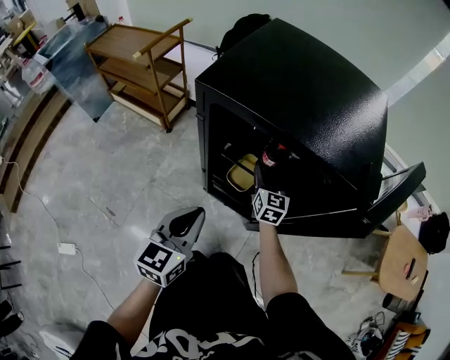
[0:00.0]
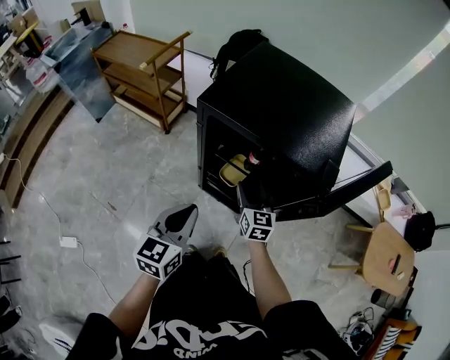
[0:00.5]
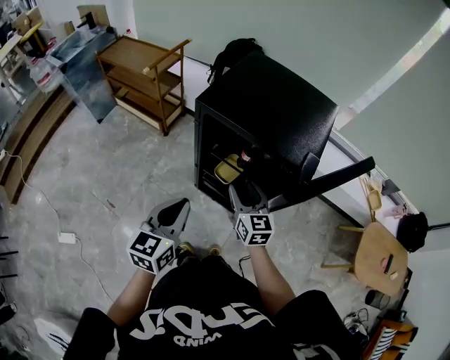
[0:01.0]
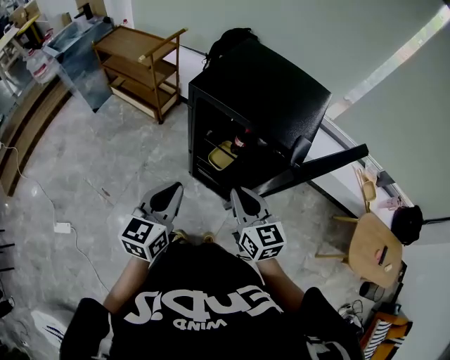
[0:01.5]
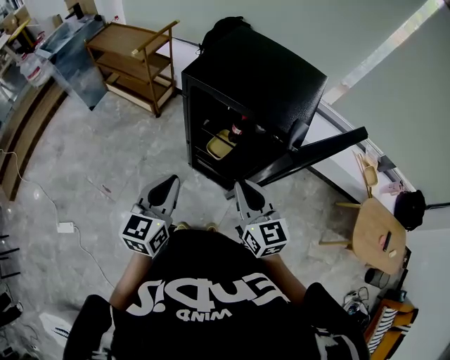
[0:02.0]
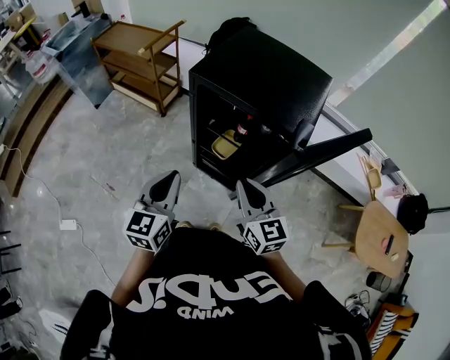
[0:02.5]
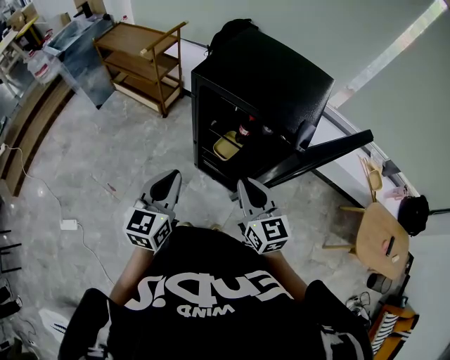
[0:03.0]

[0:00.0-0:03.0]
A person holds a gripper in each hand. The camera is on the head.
0:00.0 to 0:01.5: The right gripper is displaced upward and backward by about 35 cm, turns by approximately 30 degrees, and closes its fingers, while the left gripper shifts some 20 cm upward and backward.
0:01.5 to 0:03.0: The grippers move only a little.

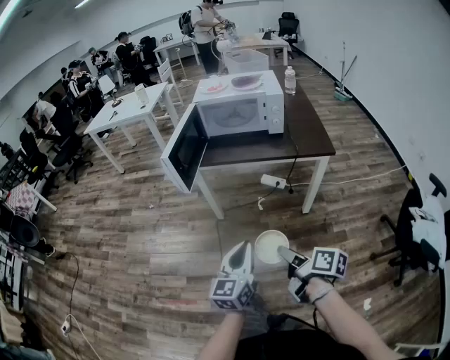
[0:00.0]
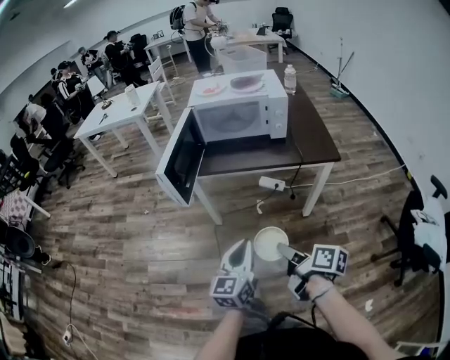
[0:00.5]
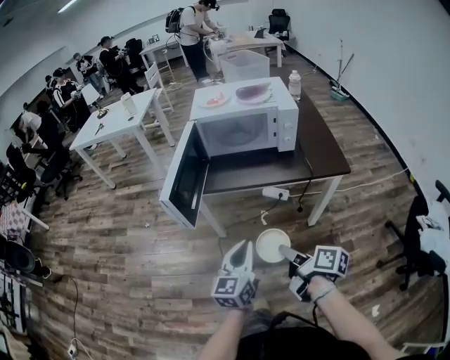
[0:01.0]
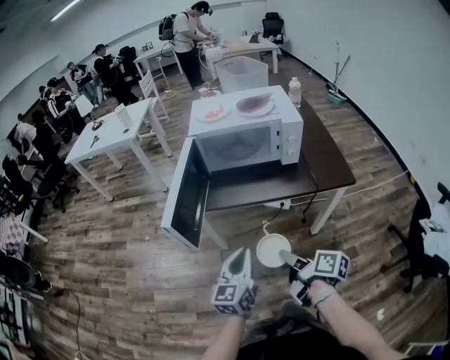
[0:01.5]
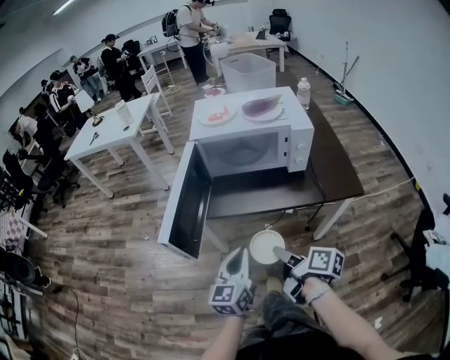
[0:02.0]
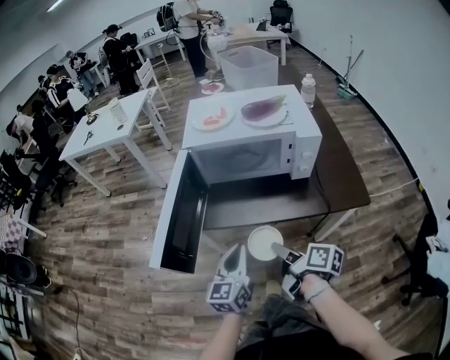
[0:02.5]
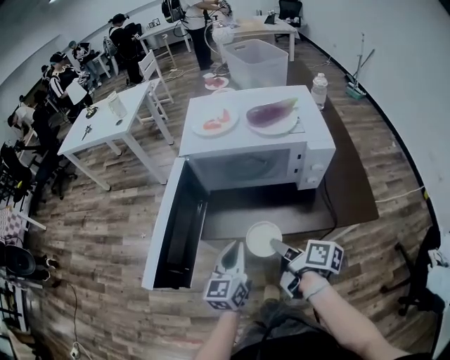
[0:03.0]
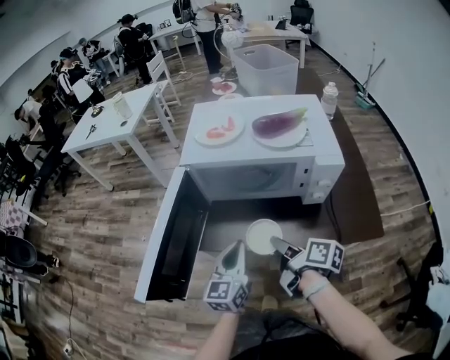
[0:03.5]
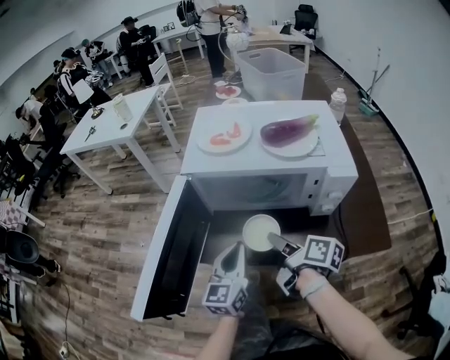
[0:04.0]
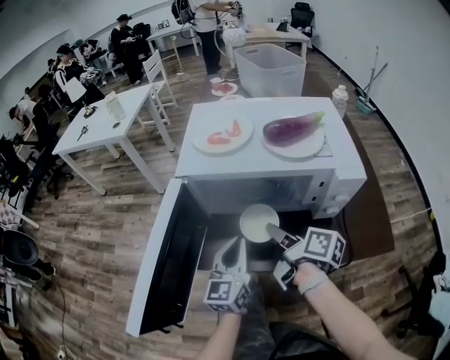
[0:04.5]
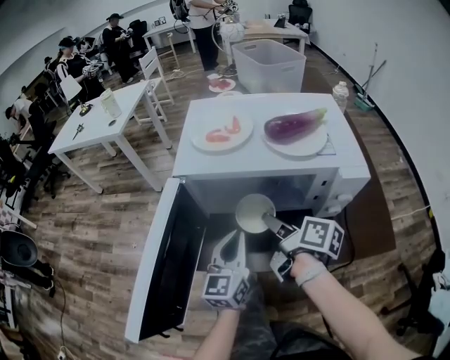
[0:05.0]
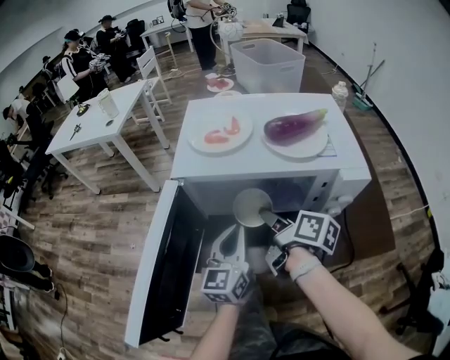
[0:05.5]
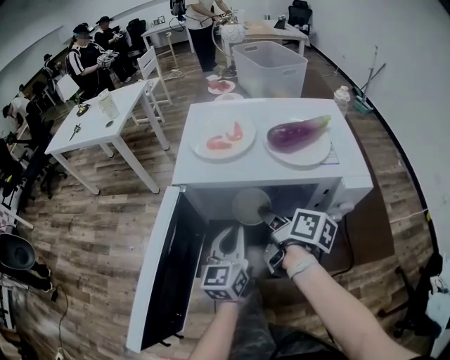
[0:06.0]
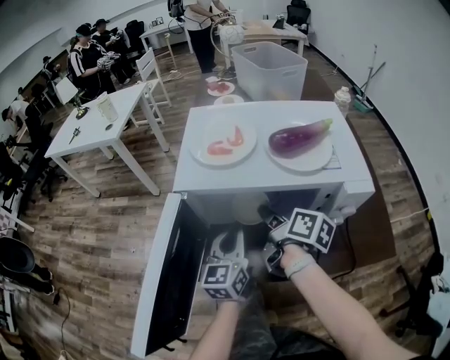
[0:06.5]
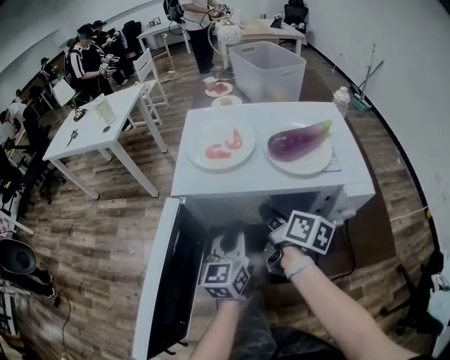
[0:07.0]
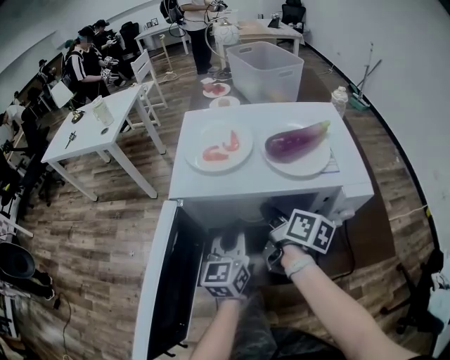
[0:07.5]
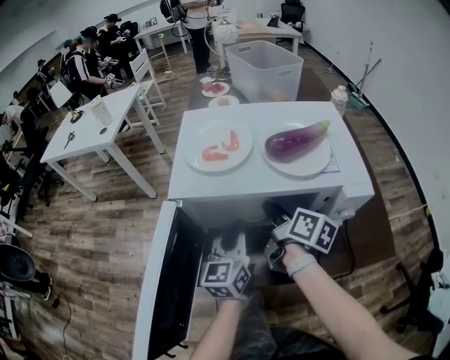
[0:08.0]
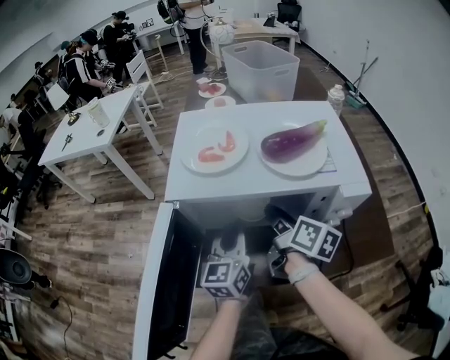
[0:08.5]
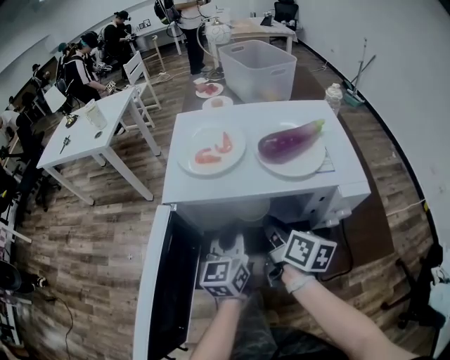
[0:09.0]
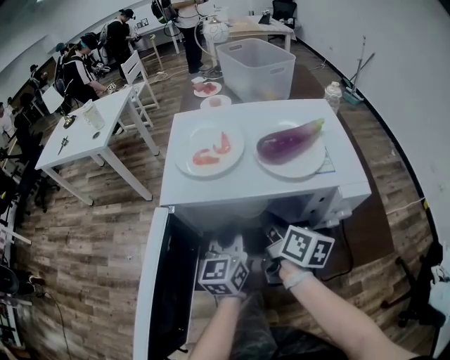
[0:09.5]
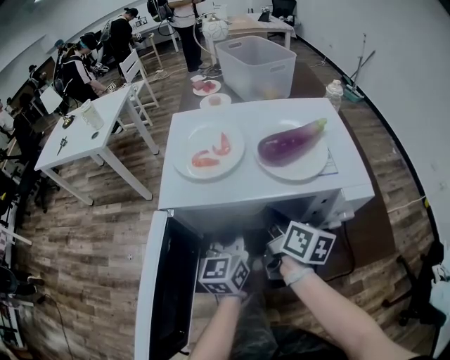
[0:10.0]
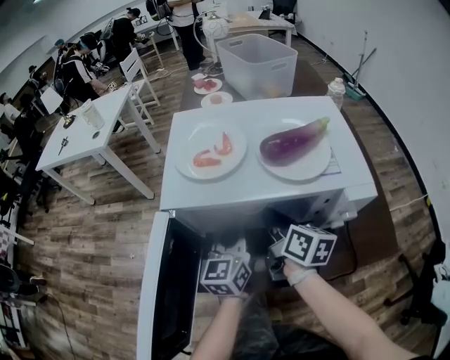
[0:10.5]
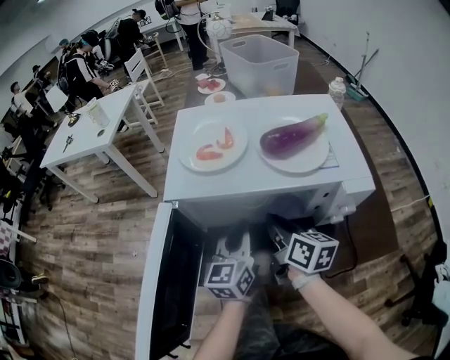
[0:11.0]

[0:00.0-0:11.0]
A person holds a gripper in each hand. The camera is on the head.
0:00.0 to 0:02.0: Both grippers move forward, some 30 cm.
0:02.0 to 0:03.5: The grippers both shift forward by about 20 cm.
0:03.5 to 0:05.5: The grippers both shift forward by approximately 15 cm.
0:05.5 to 0:07.5: Both grippers move forward, roughly 5 cm.
0:07.5 to 0:09.0: The right gripper closes.
0:09.0 to 0:11.0: The grippers make only small movements.

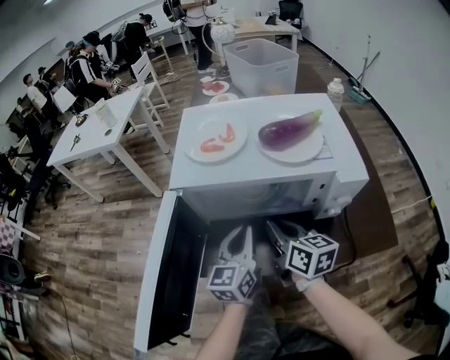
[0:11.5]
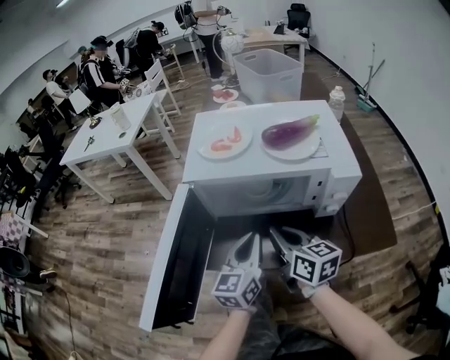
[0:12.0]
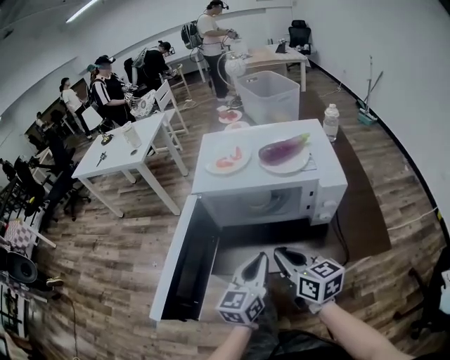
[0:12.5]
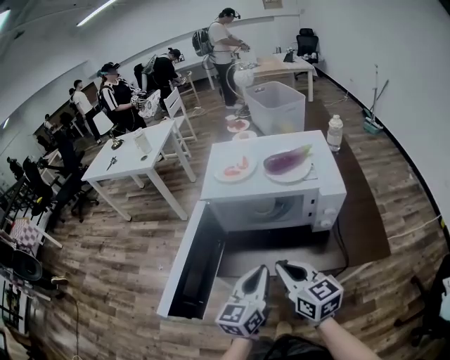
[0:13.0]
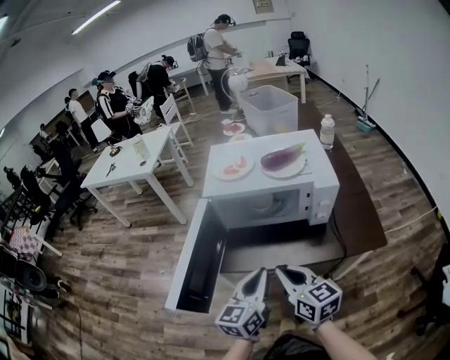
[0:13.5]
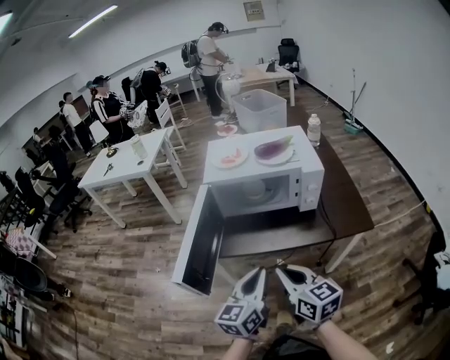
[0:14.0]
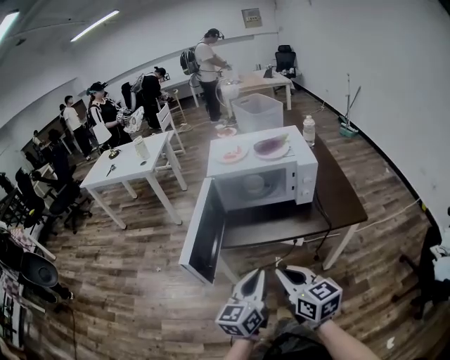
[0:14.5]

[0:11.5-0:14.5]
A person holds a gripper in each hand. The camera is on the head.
0:11.5 to 0:13.0: The grippers both shift backward and upward by approximately 15 cm.
0:13.0 to 0:14.5: The grippers both shift backward by some 20 cm.

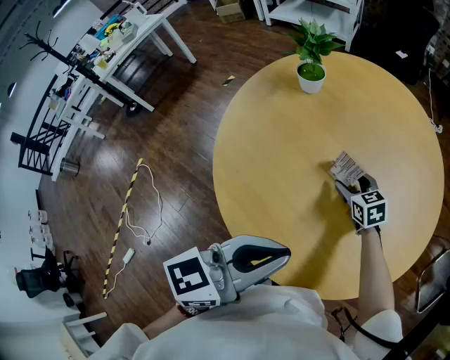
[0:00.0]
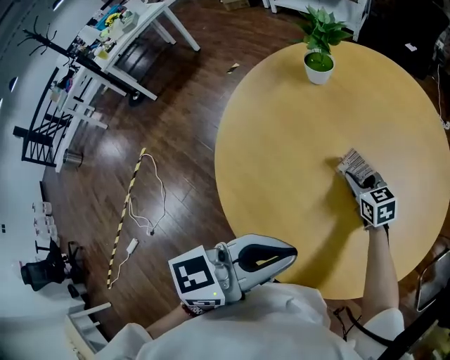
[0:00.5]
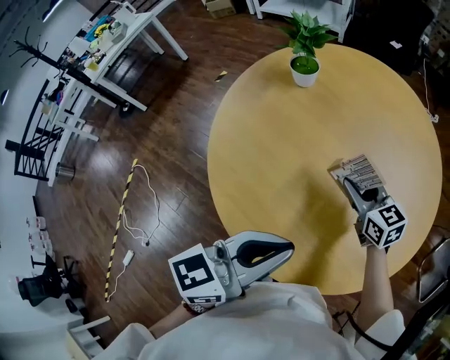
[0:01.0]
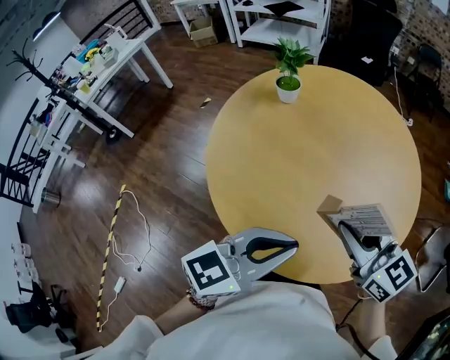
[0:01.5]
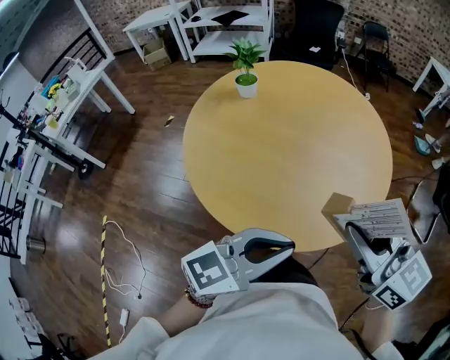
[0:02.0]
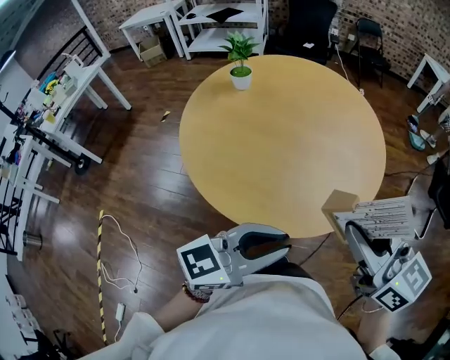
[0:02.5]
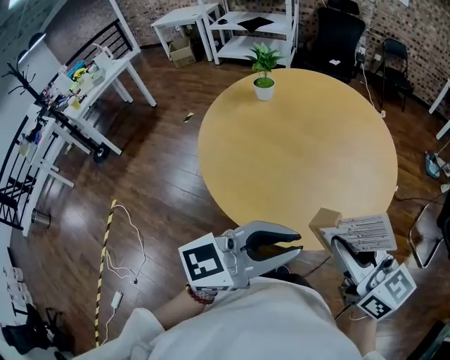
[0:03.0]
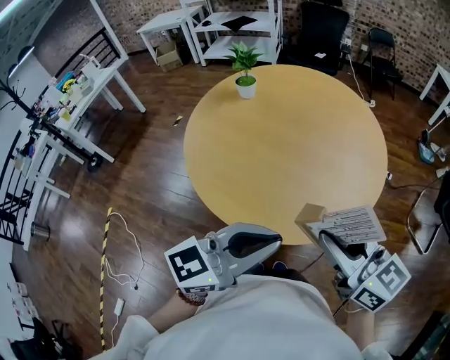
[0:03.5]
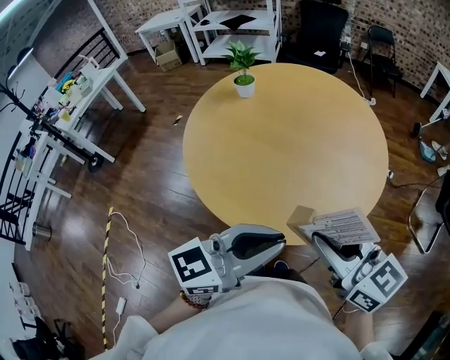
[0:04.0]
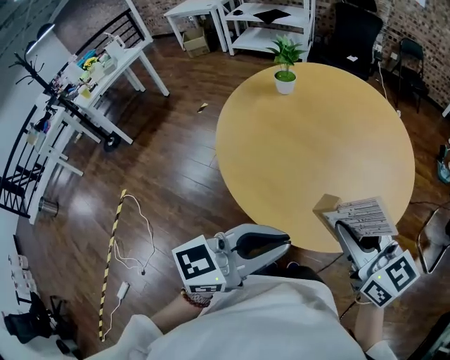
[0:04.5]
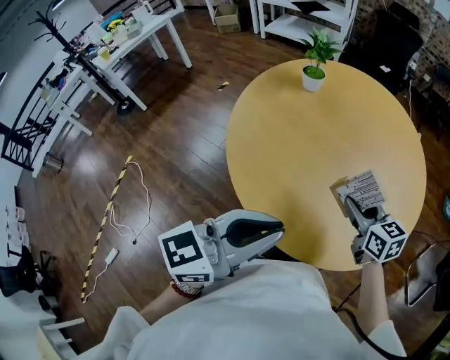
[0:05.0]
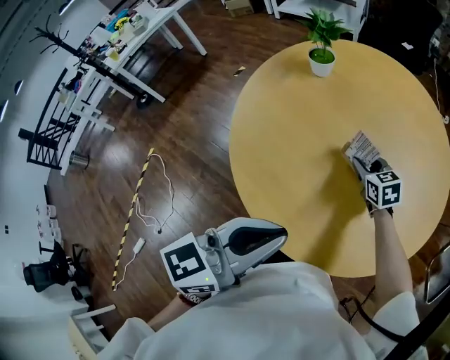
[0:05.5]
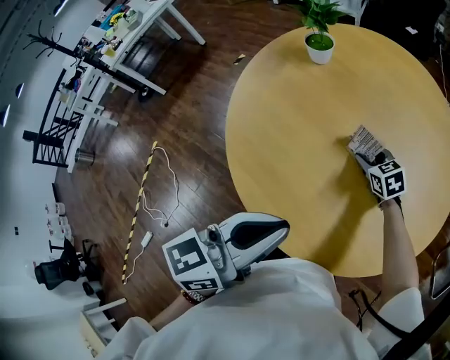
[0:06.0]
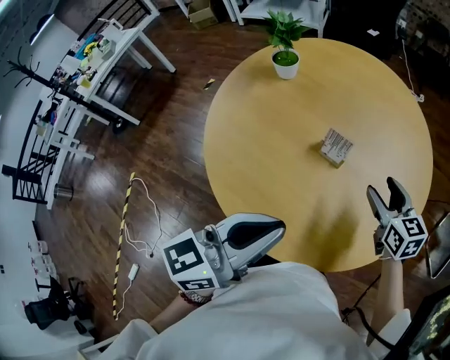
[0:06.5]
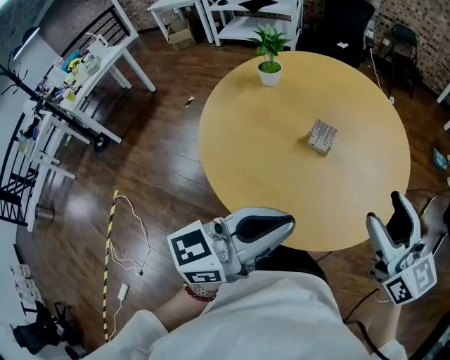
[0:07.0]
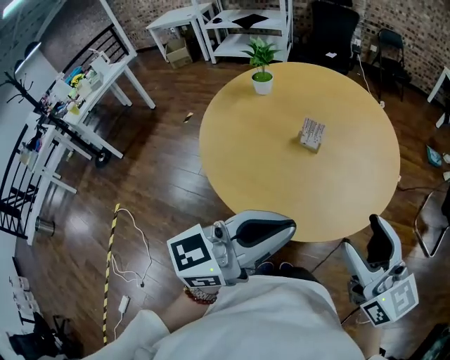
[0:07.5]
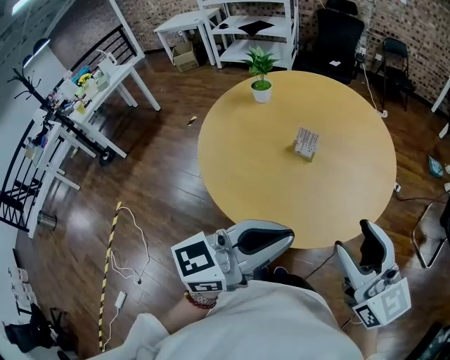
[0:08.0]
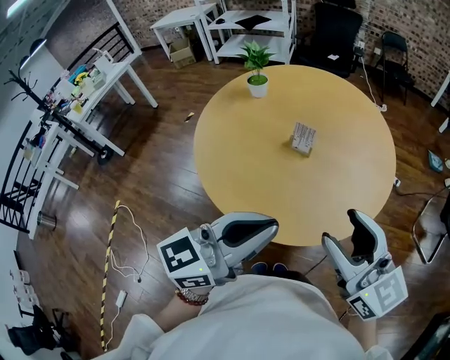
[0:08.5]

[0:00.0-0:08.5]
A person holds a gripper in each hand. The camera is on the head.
0:00.0 to 0:02.0: The right gripper travels upward and backward by roughly 50 cm, changes its angle by about 30 degrees, and closes its fingers. The left gripper is displaced backward by some 20 cm, and rotates roughly 30 degrees.
0:02.0 to 0:04.0: The left gripper heads to the right, covering approximately 5 cm; the right gripper shifts by approximately 5 cm.
0:04.0 to 0:06.5: The left gripper travels forward and to the left by roughly 15 cm; the right gripper heads forward and downward, covering approximately 35 cm, swivels roughly 20 degrees, and opens up.
0:06.5 to 0:08.5: The left gripper goes about 15 cm backward, upward and to the right. Meanwhile the right gripper is displaced backward and upward by approximately 35 cm, and rotates roughly 30 degrees.

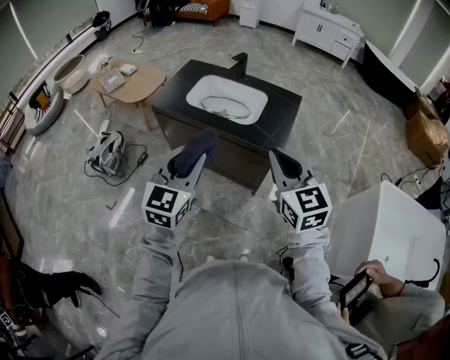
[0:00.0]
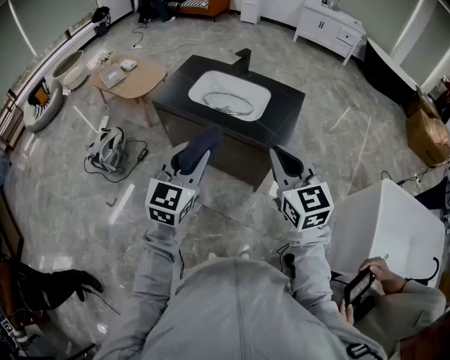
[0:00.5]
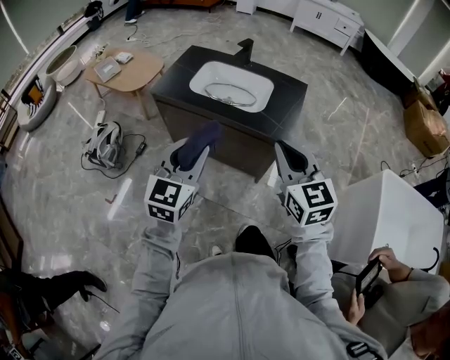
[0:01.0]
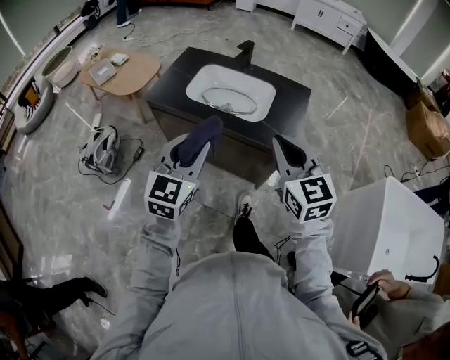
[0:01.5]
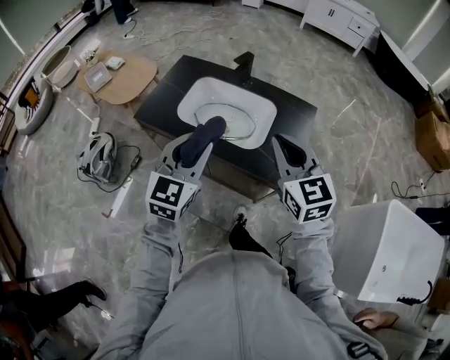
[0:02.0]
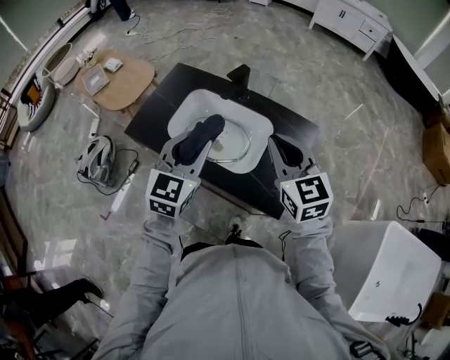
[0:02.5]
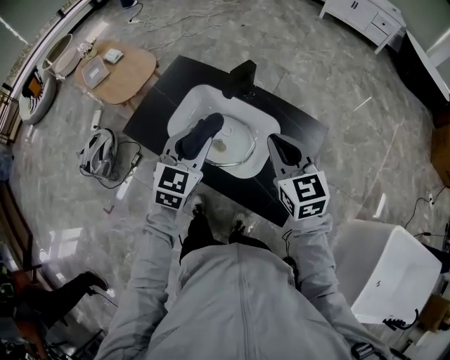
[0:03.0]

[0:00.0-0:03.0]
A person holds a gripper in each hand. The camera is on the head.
0:00.0 to 0:01.5: The two grippers go some 10 cm forward.
0:01.5 to 0:03.0: Both grippers travel together forward, roughly 35 cm.
